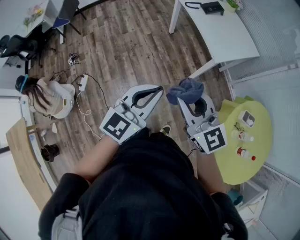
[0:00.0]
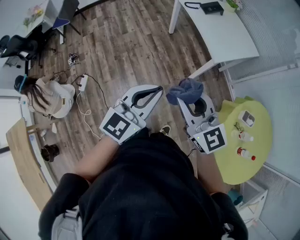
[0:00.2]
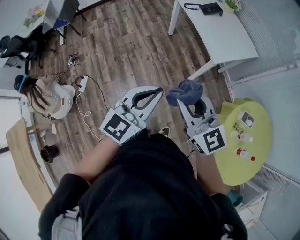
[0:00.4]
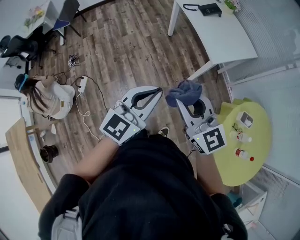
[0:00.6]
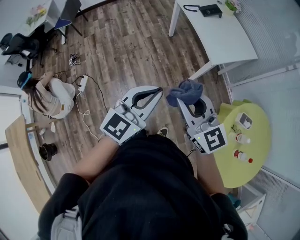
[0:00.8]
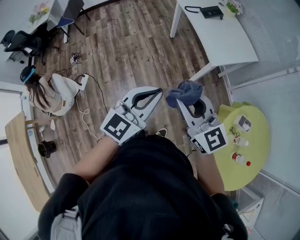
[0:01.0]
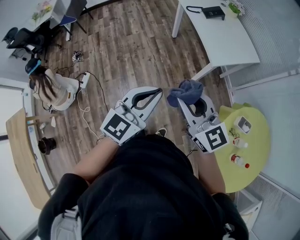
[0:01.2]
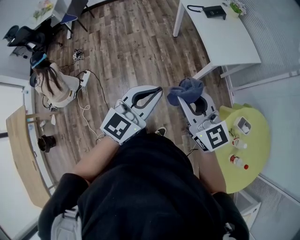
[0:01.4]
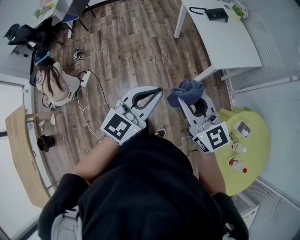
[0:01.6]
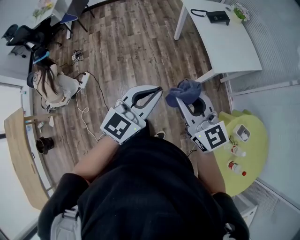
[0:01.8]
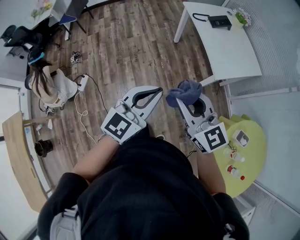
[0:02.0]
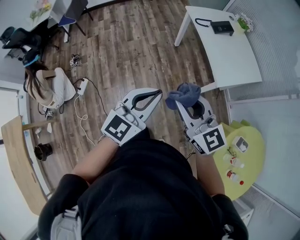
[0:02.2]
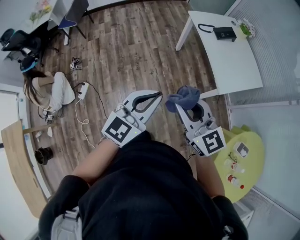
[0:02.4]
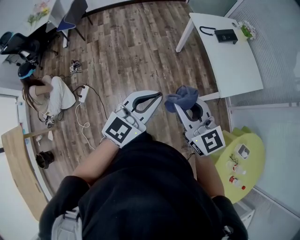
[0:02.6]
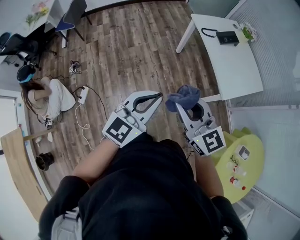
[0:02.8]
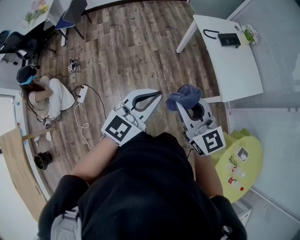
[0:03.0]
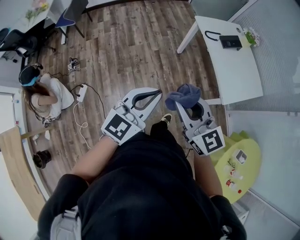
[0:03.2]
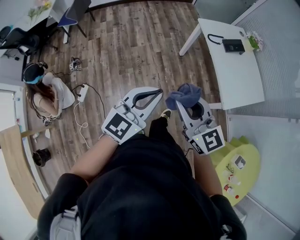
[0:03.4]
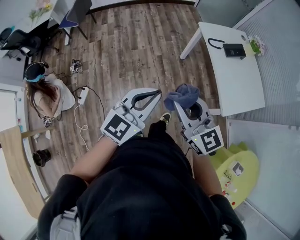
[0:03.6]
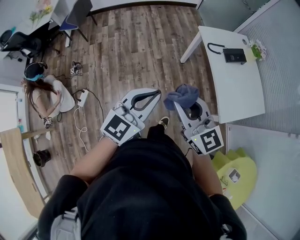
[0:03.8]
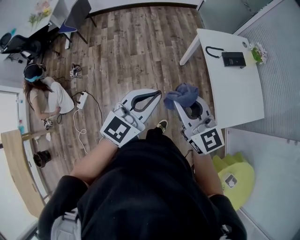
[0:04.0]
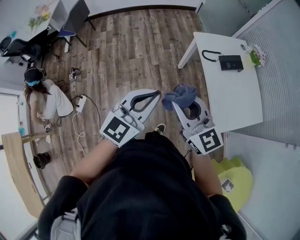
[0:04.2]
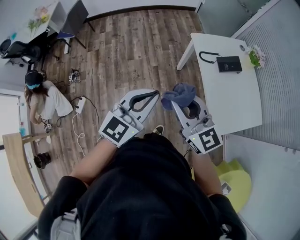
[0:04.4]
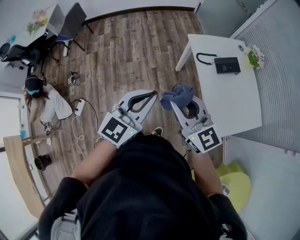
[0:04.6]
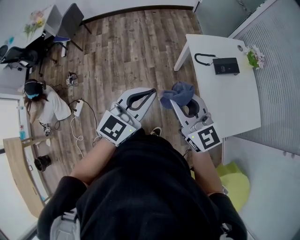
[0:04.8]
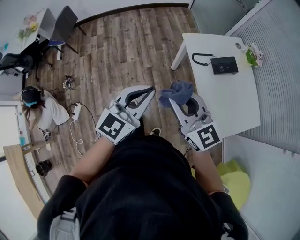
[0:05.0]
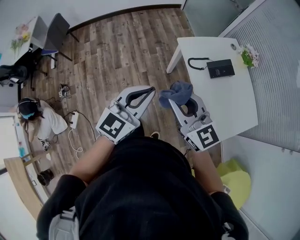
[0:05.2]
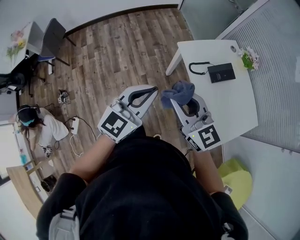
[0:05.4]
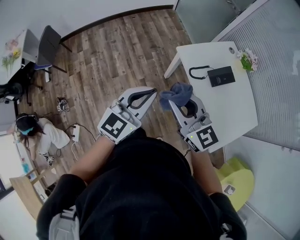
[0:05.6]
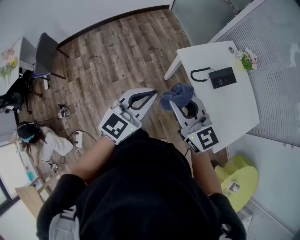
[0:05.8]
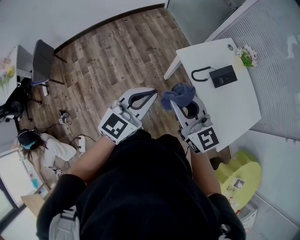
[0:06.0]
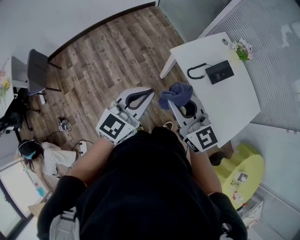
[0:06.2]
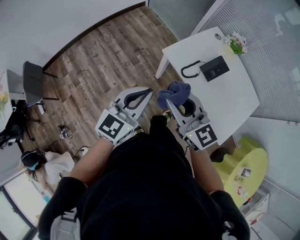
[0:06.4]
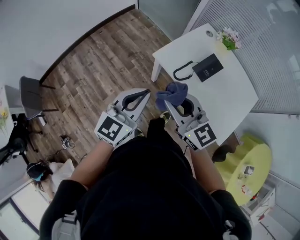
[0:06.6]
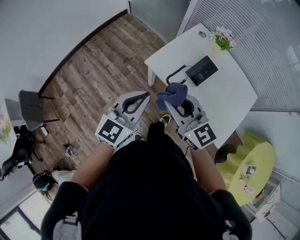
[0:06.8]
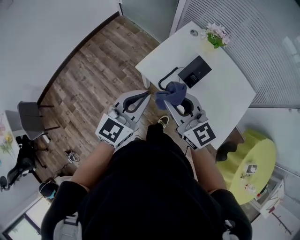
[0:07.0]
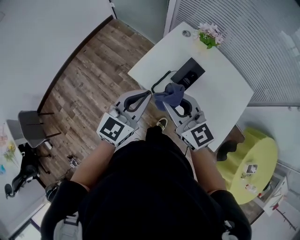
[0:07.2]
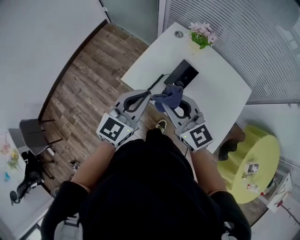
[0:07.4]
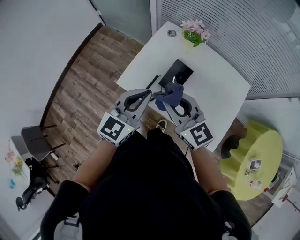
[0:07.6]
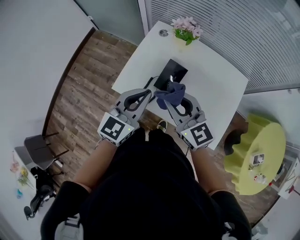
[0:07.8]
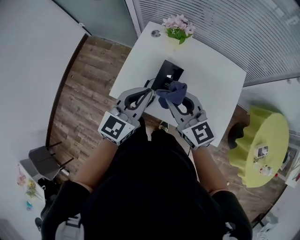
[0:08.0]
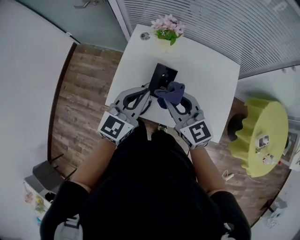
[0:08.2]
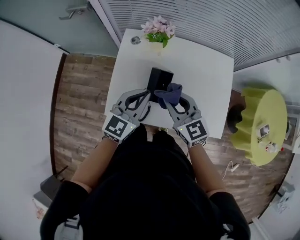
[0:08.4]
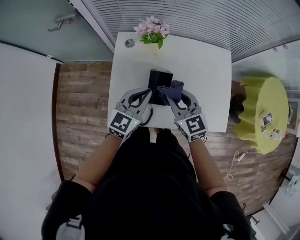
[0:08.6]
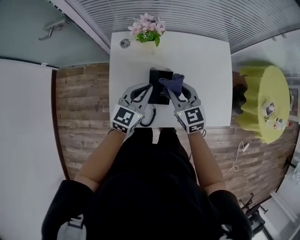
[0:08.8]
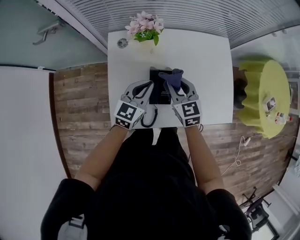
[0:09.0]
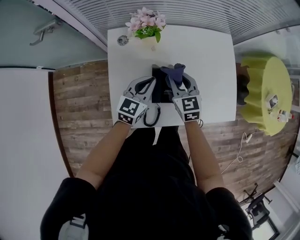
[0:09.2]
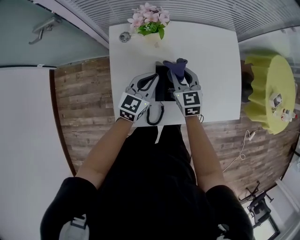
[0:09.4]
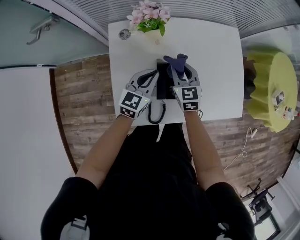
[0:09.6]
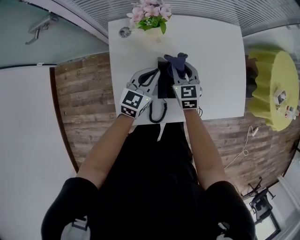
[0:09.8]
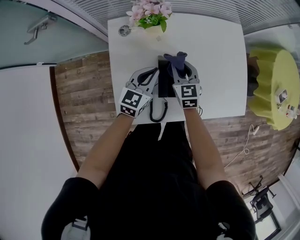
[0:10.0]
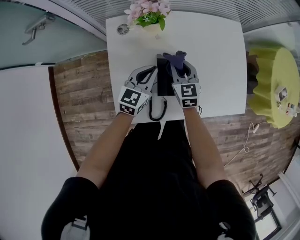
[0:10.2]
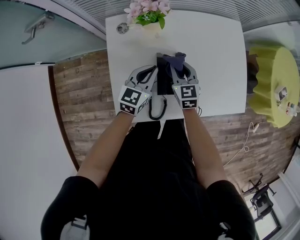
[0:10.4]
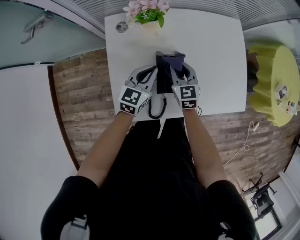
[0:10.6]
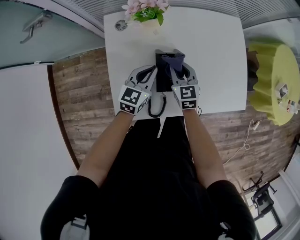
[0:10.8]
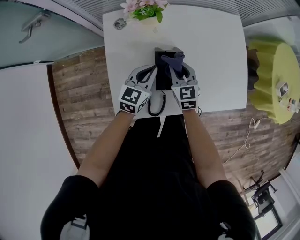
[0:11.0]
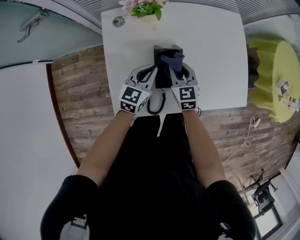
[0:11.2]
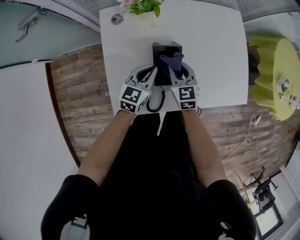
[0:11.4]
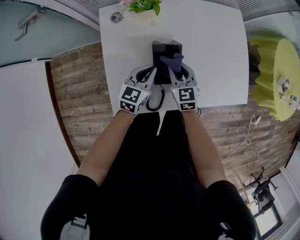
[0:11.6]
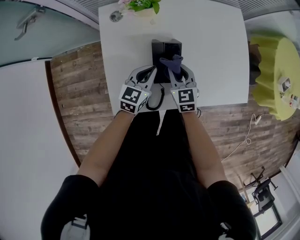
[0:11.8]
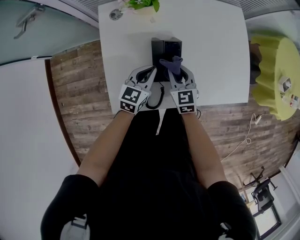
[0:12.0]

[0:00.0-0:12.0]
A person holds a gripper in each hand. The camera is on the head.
0:00.0 to 0:01.6: The two grippers go approximately 5 cm to the right.
0:01.6 to 0:03.0: The two grippers go approximately 25 cm forward and to the left.
0:03.0 to 0:04.4: Both grippers travel together forward and to the right, roughly 25 cm.
0:04.4 to 0:06.0: The grippers both shift forward by about 25 cm.
0:06.0 to 0:07.6: Both grippers move to the right and forward, roughly 35 cm. The right gripper turns by some 20 degrees. The left gripper rotates approximately 30 degrees.
0:07.6 to 0:09.0: The right gripper ends up roughly 25 cm from where it was, and changes its angle by approximately 50 degrees; the left gripper shifts by approximately 25 cm, and changes its angle by roughly 30 degrees.
0:09.0 to 0:10.4: The two grippers go some 10 cm downward.
0:10.4 to 0:12.0: The right gripper is displaced backward by about 10 cm. Meanwhile the left gripper is displaced backward and downward by some 10 cm.

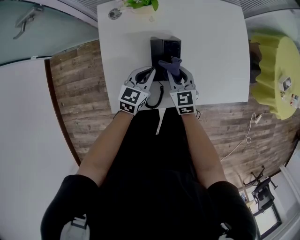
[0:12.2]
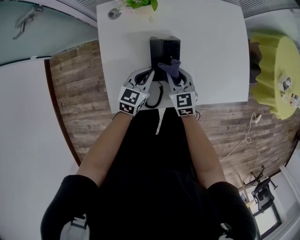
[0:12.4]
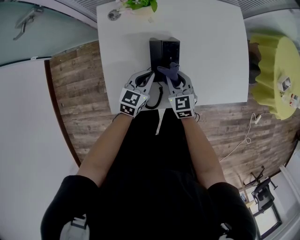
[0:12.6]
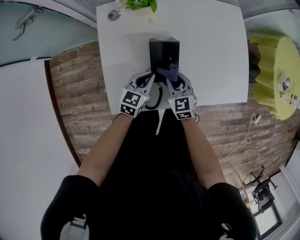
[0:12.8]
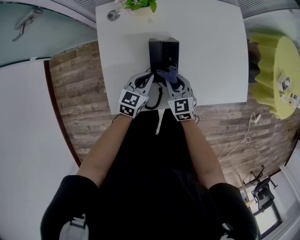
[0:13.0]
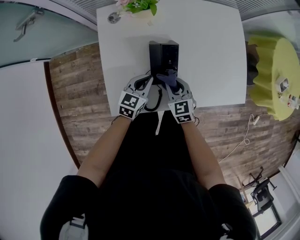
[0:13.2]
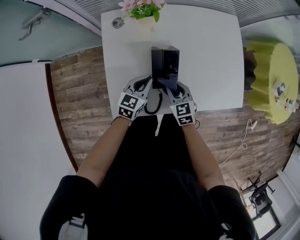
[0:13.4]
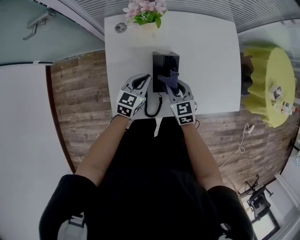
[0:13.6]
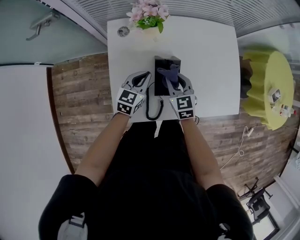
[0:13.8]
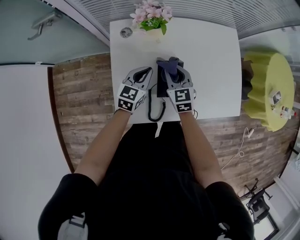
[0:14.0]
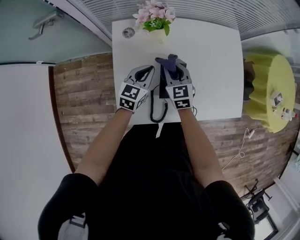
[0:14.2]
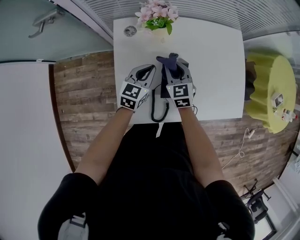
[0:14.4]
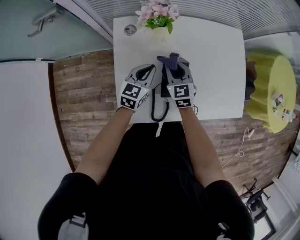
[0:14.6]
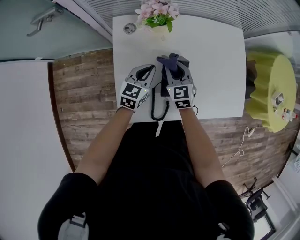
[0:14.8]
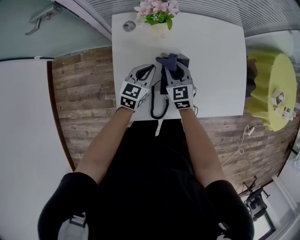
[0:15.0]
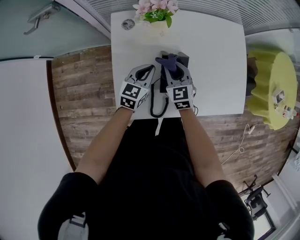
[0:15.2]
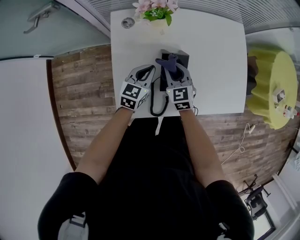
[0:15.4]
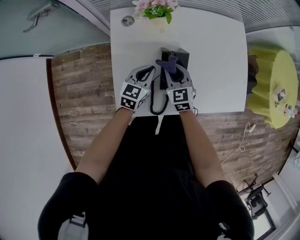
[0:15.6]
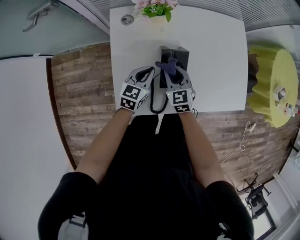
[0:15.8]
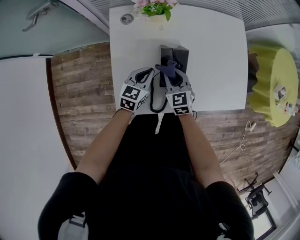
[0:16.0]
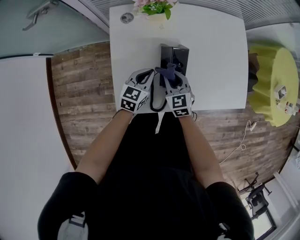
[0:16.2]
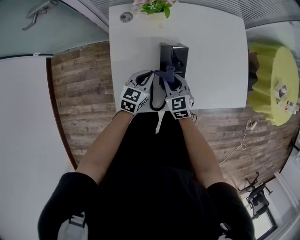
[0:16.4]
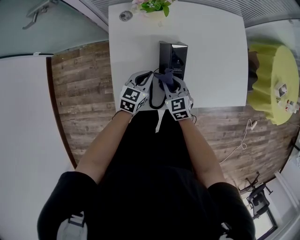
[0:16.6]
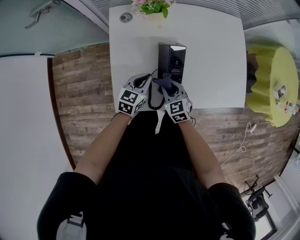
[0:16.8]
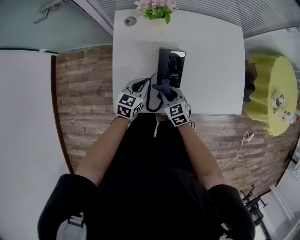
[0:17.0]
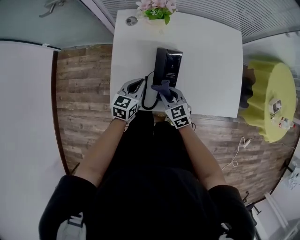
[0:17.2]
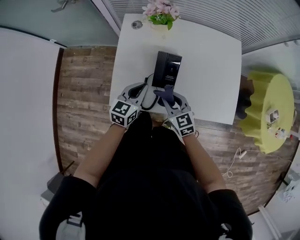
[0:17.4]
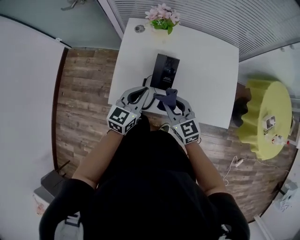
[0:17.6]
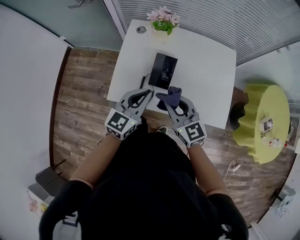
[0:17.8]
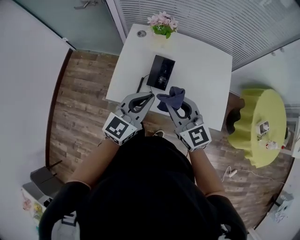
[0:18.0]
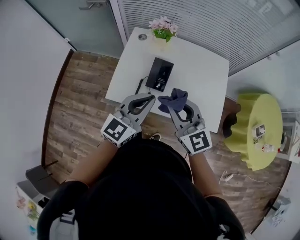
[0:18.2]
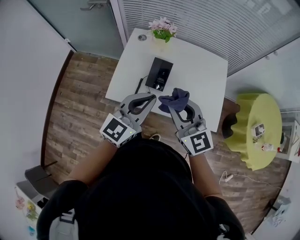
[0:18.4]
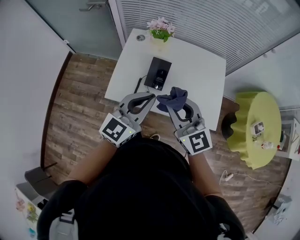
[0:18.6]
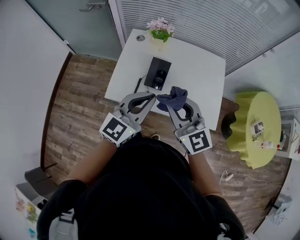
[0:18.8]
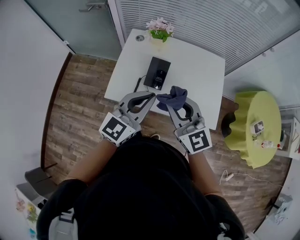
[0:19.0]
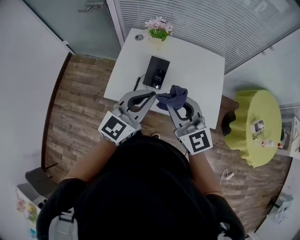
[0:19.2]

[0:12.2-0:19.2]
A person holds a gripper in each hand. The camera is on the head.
0:12.2 to 0:13.6: There are only small adjustments of the grippers.
0:13.6 to 0:15.0: The right gripper is displaced forward and to the left by some 10 cm; the left gripper shifts by some 5 cm.
0:15.0 to 0:16.4: The two grippers go some 10 cm backward.
0:16.4 to 0:17.8: The two grippers go roughly 25 cm upward and backward. The right gripper swivels approximately 30 degrees, while the left gripper turns by roughly 20 degrees.
0:17.8 to 0:19.2: The grippers both shift upward and backward by roughly 15 cm.

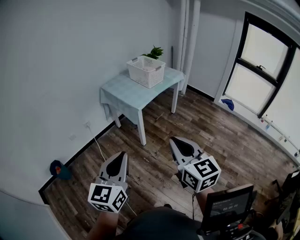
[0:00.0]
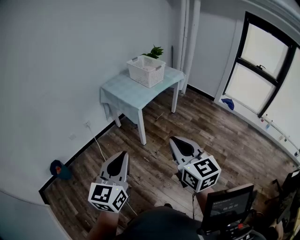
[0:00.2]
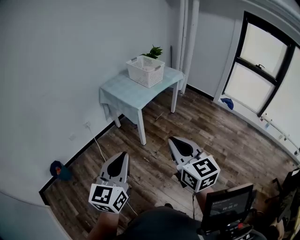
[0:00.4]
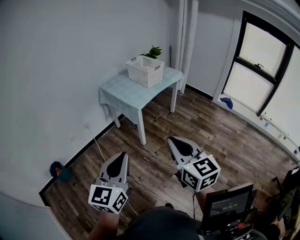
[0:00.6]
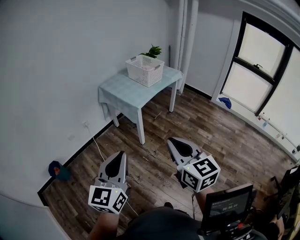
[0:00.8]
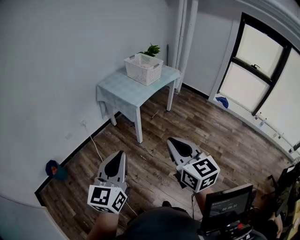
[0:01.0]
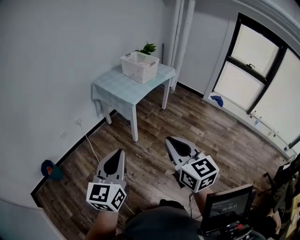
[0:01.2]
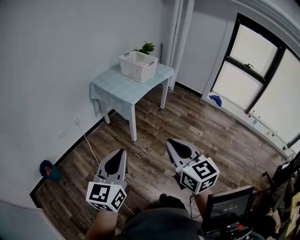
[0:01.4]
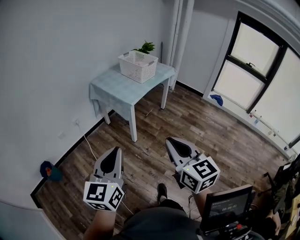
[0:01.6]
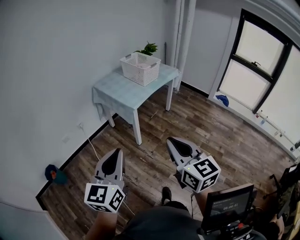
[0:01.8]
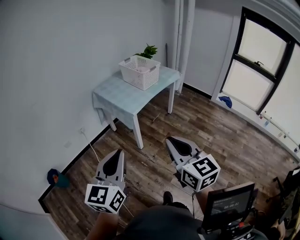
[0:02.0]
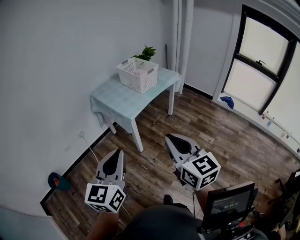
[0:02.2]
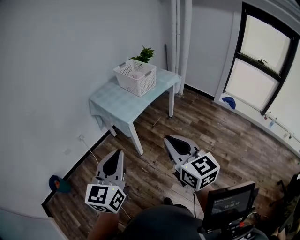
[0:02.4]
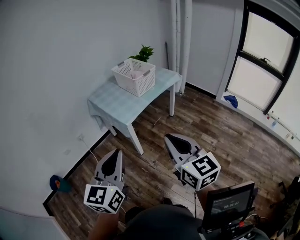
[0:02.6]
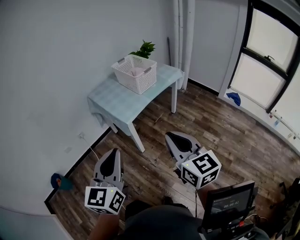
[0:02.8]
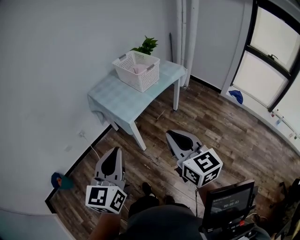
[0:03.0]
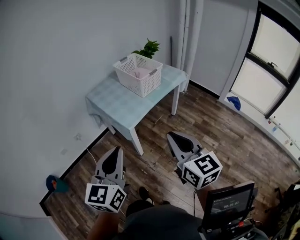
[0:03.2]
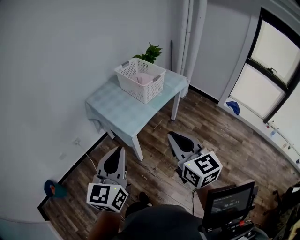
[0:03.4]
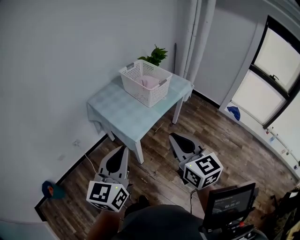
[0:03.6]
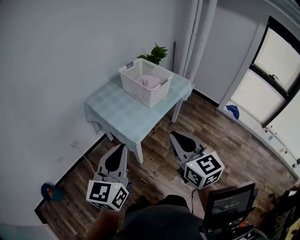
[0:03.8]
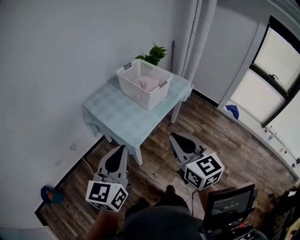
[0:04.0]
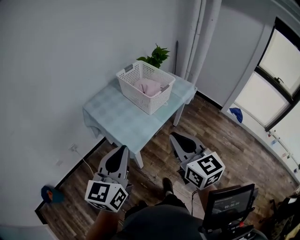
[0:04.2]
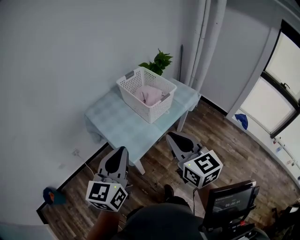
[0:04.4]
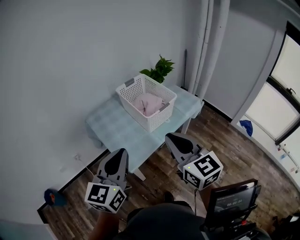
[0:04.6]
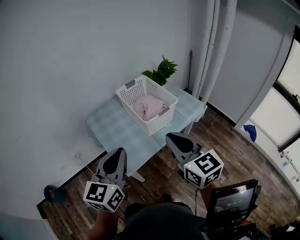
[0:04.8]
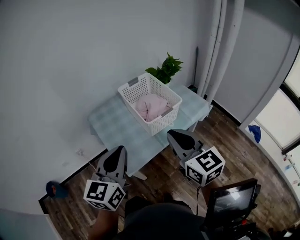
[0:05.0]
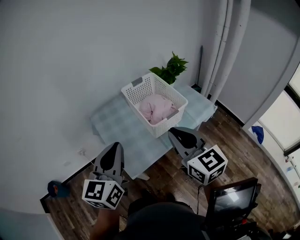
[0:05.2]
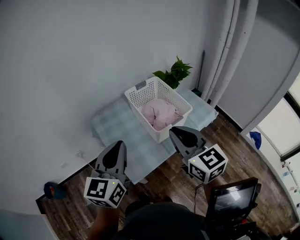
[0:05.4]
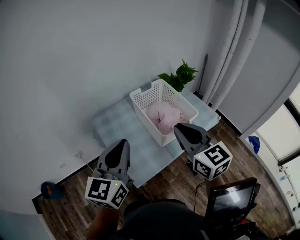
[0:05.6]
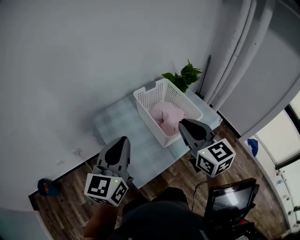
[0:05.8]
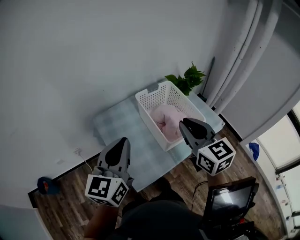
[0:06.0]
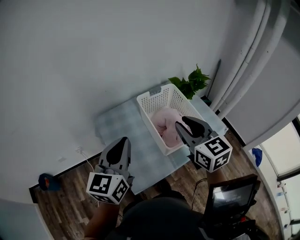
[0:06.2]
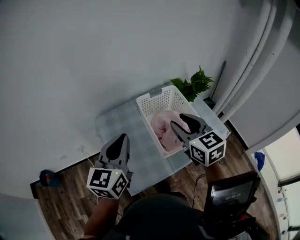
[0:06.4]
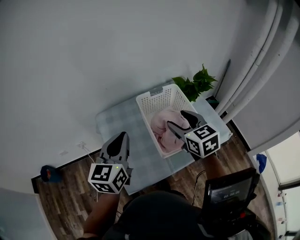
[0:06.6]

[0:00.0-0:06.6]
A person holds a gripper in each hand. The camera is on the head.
0:00.0 to 0:01.6: The grippers stay close to where they were, moving slightly.
0:01.6 to 0:03.2: The grippers both shift forward and to the right by some 30 cm.
0:03.2 to 0:05.0: The two grippers go approximately 30 cm forward.
0:05.0 to 0:06.6: The grippers both shift forward by about 25 cm. The right gripper changes its angle by roughly 20 degrees, and opens up.
